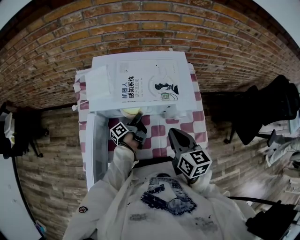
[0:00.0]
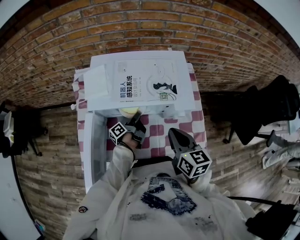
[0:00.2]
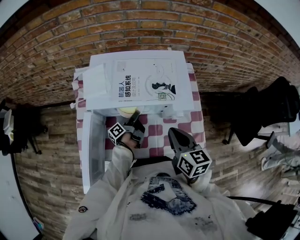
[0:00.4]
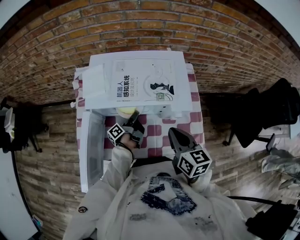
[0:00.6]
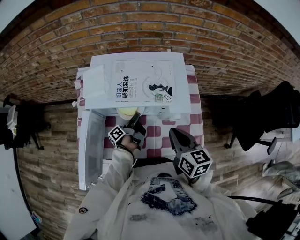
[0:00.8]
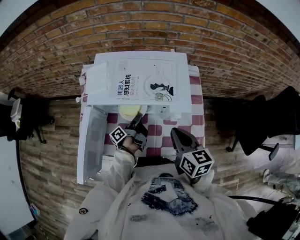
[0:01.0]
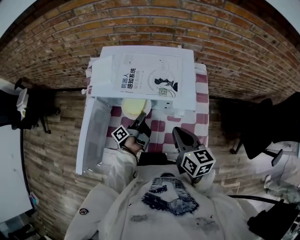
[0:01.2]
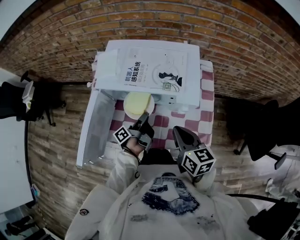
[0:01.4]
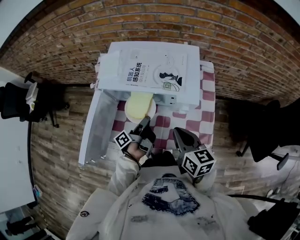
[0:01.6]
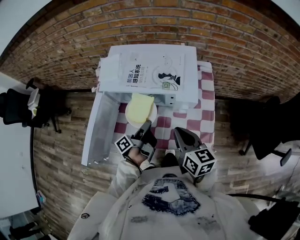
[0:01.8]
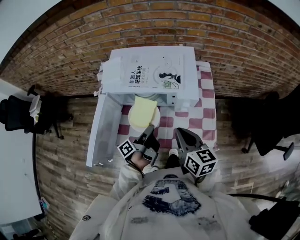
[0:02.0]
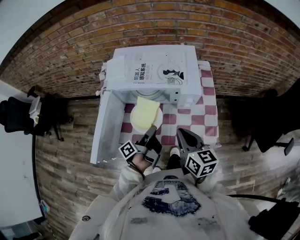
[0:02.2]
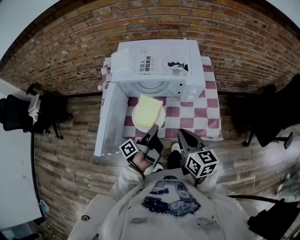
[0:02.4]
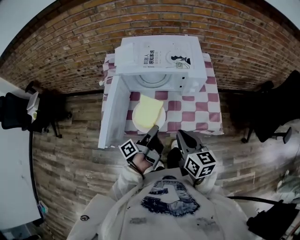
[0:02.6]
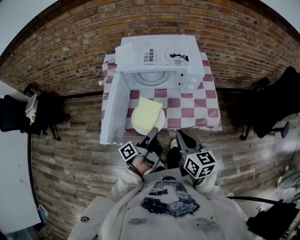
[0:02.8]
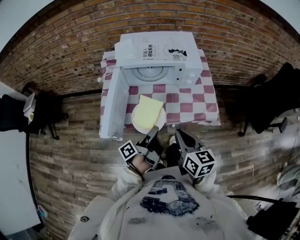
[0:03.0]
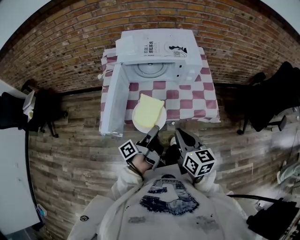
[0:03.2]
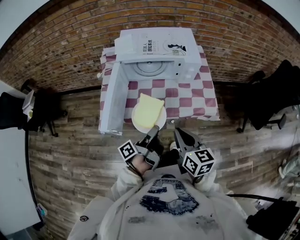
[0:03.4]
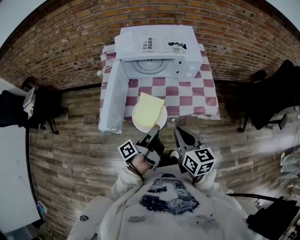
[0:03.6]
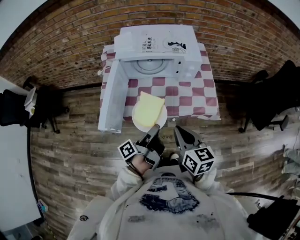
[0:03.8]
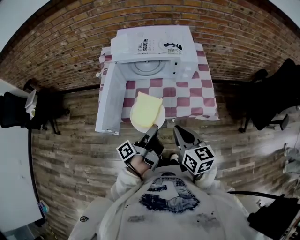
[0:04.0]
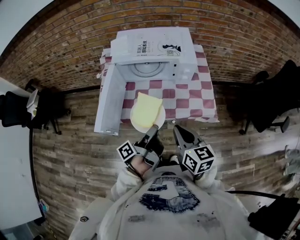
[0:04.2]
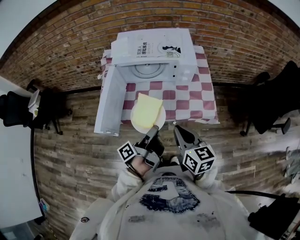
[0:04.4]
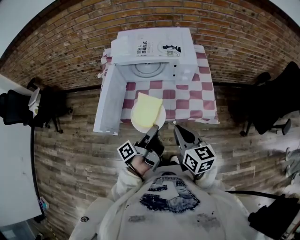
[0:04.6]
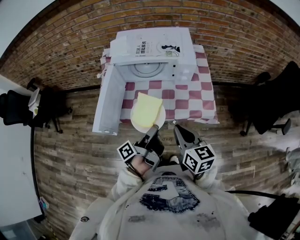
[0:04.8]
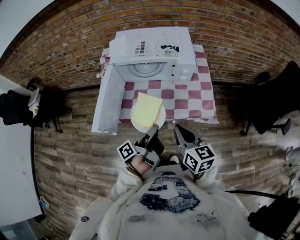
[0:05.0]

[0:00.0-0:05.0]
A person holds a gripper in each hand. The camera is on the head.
0:00.0 to 0:01.6: The left gripper goes roughly 15 cm backward and upward. Meanwhile the right gripper shifts by some 5 cm.
0:01.6 to 0:03.4: The right gripper moves backward and to the left, approximately 25 cm. The left gripper is displaced backward by roughly 25 cm.
0:03.4 to 0:05.0: Both grippers move to the right, some 5 cm.

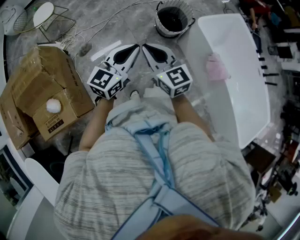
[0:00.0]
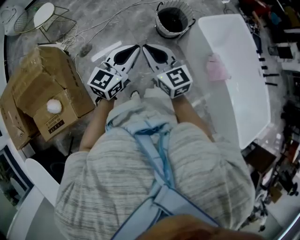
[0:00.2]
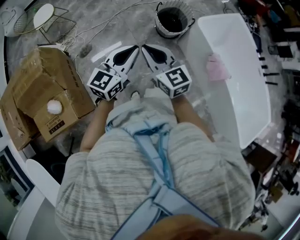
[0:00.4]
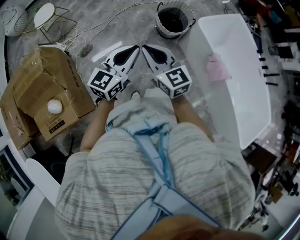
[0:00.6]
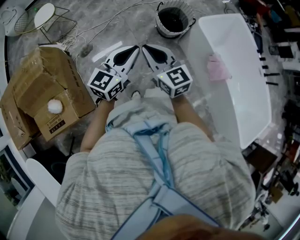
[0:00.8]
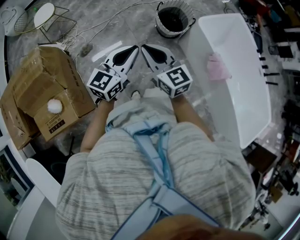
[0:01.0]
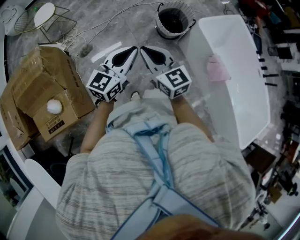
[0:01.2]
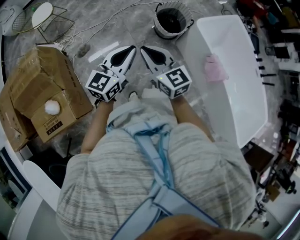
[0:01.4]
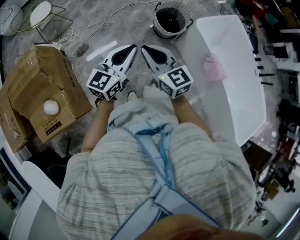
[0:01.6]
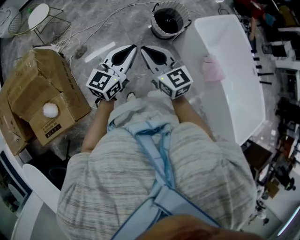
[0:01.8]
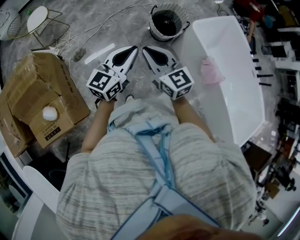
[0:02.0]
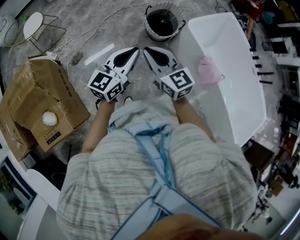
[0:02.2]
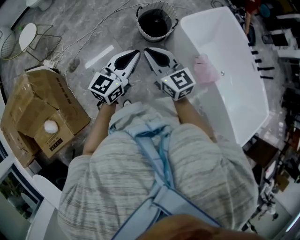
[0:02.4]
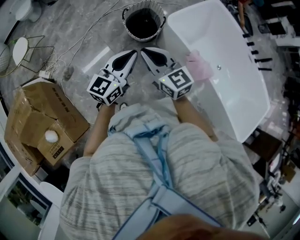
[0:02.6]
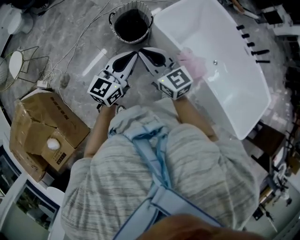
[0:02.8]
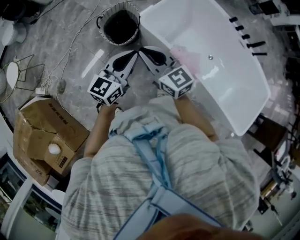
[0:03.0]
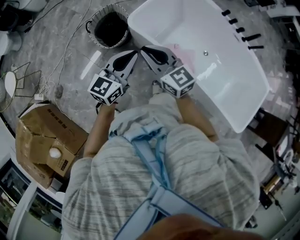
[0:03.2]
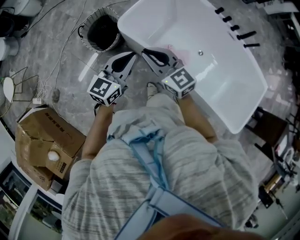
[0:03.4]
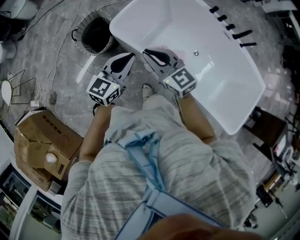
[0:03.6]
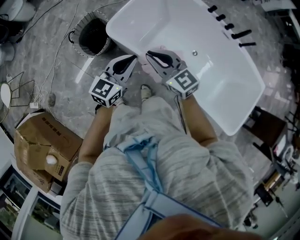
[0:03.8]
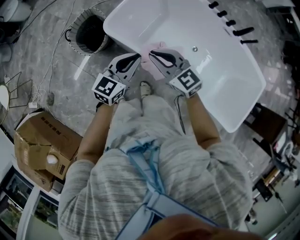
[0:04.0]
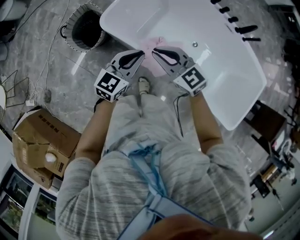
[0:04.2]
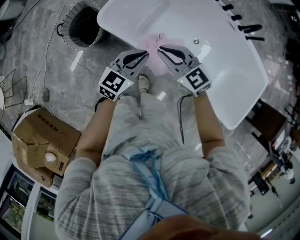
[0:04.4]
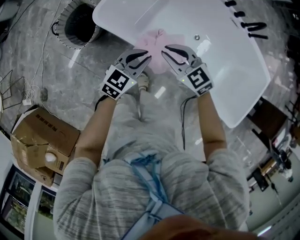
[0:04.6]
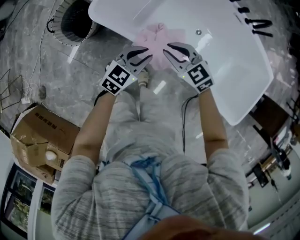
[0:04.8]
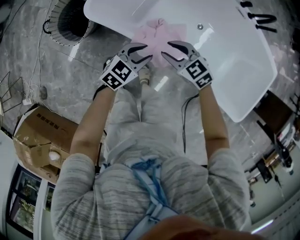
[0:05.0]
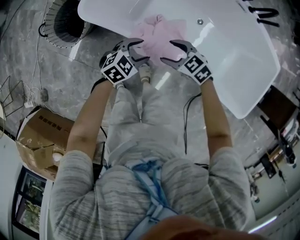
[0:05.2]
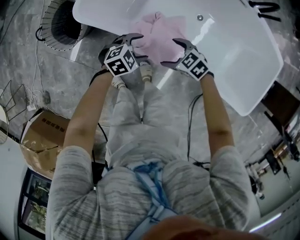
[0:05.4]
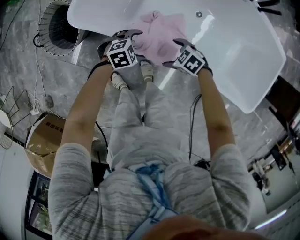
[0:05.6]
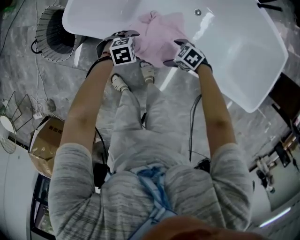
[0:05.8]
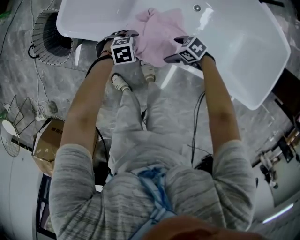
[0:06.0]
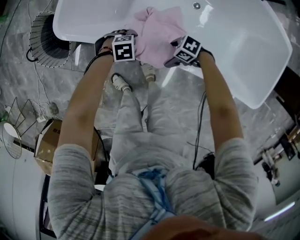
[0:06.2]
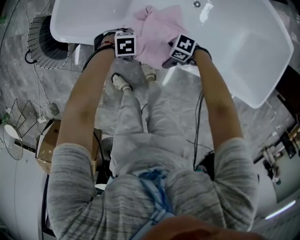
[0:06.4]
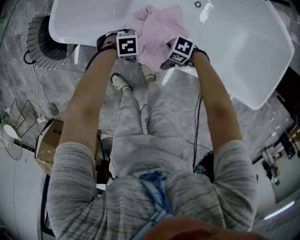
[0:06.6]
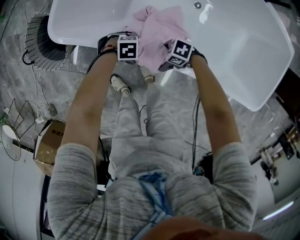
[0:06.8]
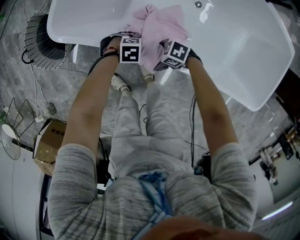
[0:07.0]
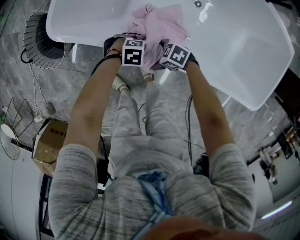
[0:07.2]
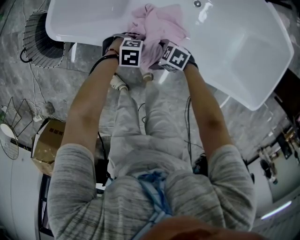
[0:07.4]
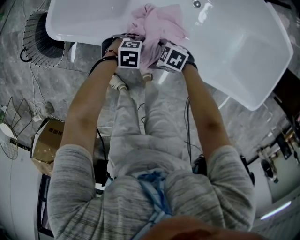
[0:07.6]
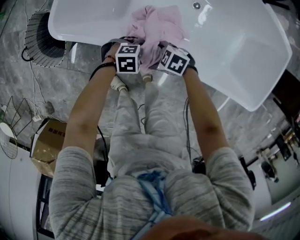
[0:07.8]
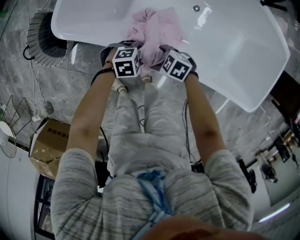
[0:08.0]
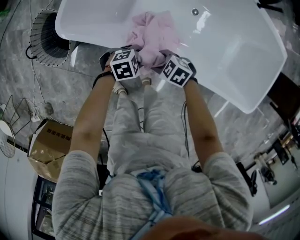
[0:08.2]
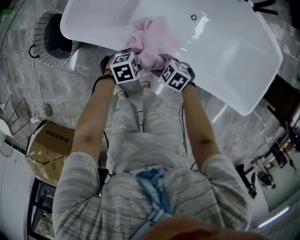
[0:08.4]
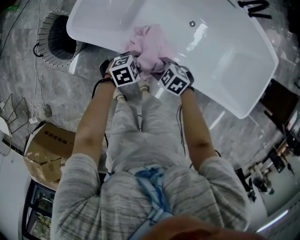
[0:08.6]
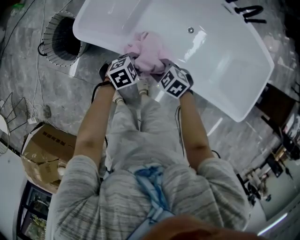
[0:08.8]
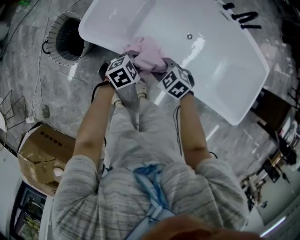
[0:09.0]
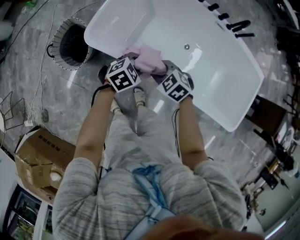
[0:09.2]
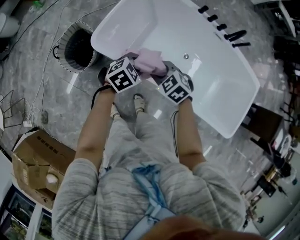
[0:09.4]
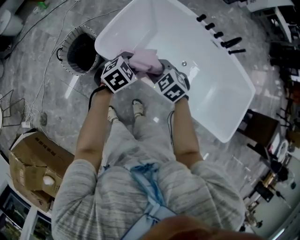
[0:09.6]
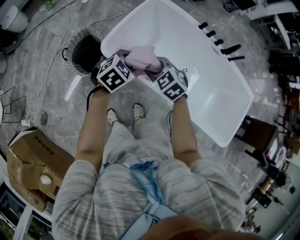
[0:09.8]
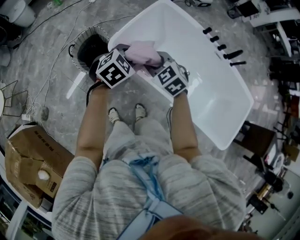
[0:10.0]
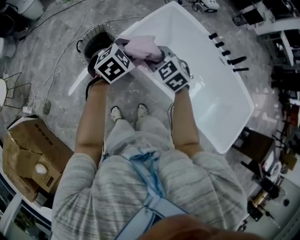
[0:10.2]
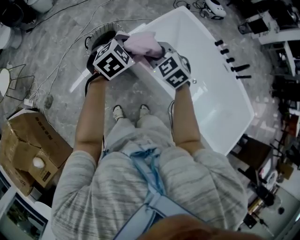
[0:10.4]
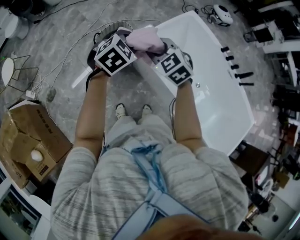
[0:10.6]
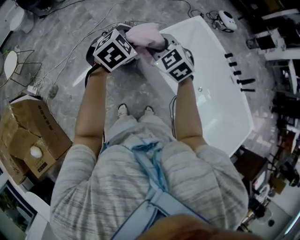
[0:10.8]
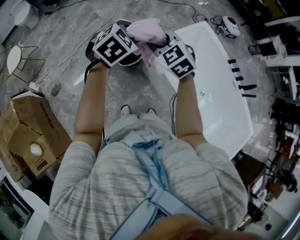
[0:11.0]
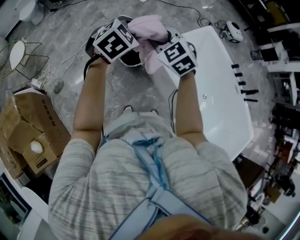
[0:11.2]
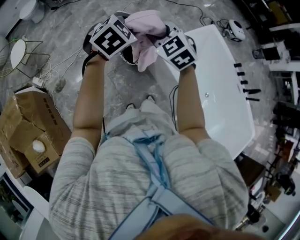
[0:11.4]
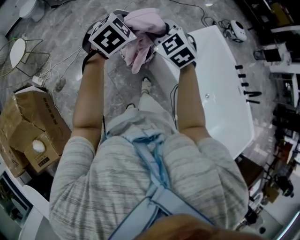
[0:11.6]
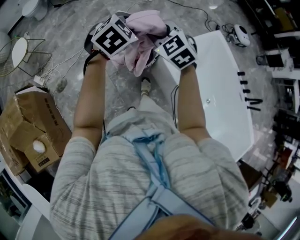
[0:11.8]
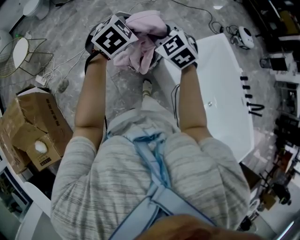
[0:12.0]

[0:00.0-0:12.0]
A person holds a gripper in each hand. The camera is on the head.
0:00.0 to 0:01.6: The grippers stay close to where they were, moving slightly.
0:01.6 to 0:03.0: The pair of grippers is taken to the right and forward, about 40 cm. The left gripper swivels some 20 degrees.
0:03.0 to 0:04.4: The right gripper travels to the right by some 30 cm, while the left gripper travels to the right and downward by about 30 cm, and turns by approximately 20 degrees.
0:04.4 to 0:06.0: The two grippers go about 35 cm downward. The right gripper changes its angle by about 60 degrees, and opens; the left gripper angles its fingers downward, by approximately 40 degrees, and opens up.
0:06.0 to 0:07.6: The right gripper is displaced to the right by approximately 5 cm; the left gripper ends up roughly 5 cm from where it was.
0:07.6 to 0:09.0: The two grippers go roughly 20 cm upward. The left gripper rotates about 40 degrees, and closes. Meanwhile the right gripper turns by some 30 degrees, and closes its fingers.
0:09.0 to 0:10.4: The two grippers go approximately 30 cm upward. The left gripper changes its angle by roughly 40 degrees. Meanwhile the right gripper turns by about 30 degrees.
0:10.4 to 0:12.0: The grippers both shift to the left and forward by approximately 30 cm.

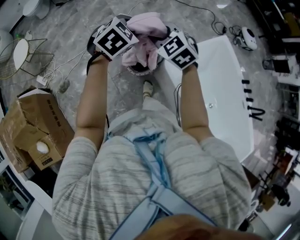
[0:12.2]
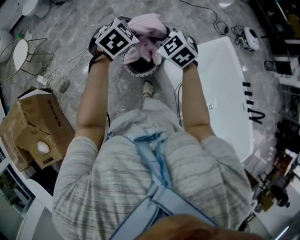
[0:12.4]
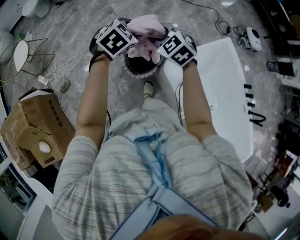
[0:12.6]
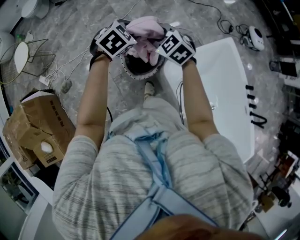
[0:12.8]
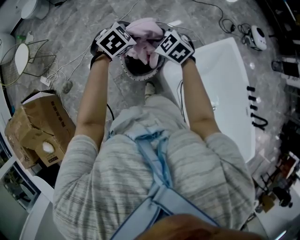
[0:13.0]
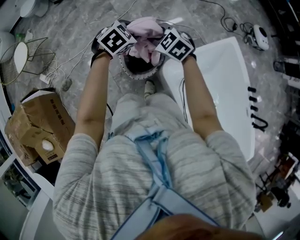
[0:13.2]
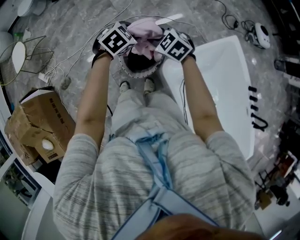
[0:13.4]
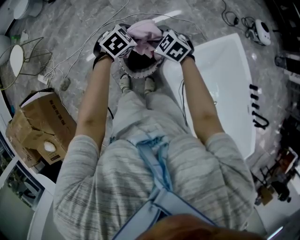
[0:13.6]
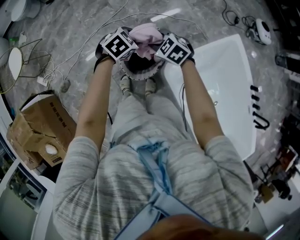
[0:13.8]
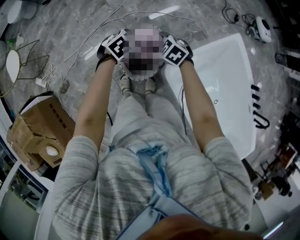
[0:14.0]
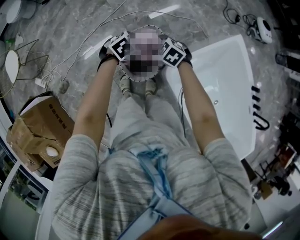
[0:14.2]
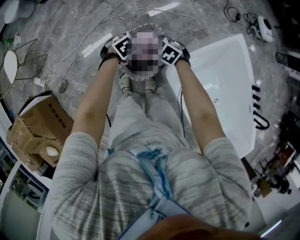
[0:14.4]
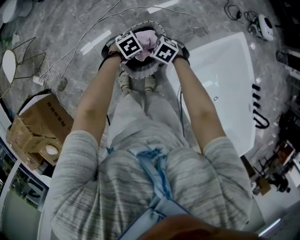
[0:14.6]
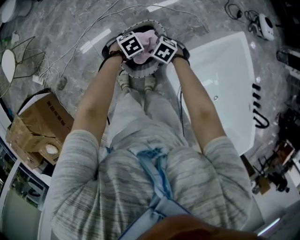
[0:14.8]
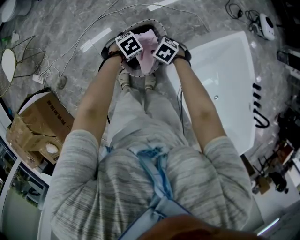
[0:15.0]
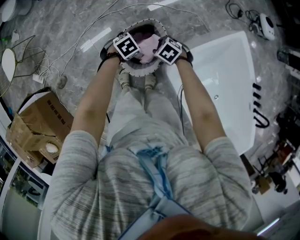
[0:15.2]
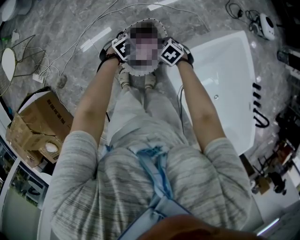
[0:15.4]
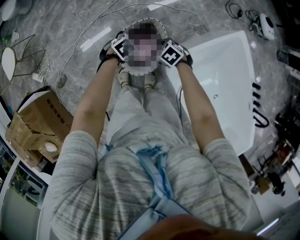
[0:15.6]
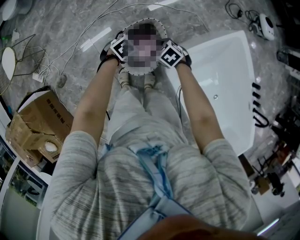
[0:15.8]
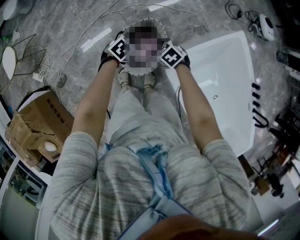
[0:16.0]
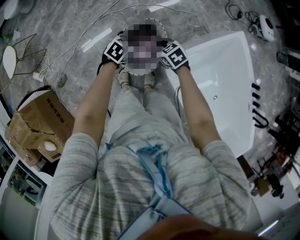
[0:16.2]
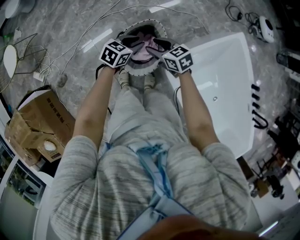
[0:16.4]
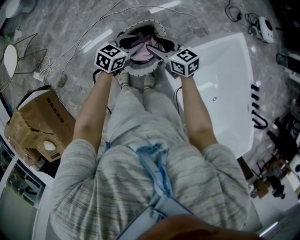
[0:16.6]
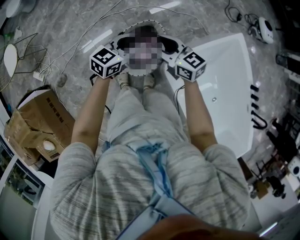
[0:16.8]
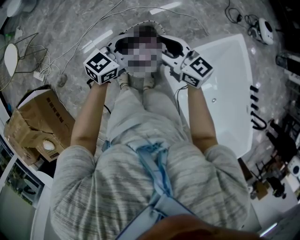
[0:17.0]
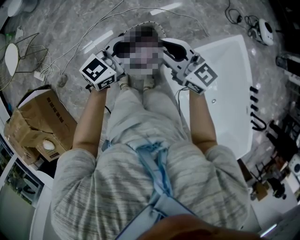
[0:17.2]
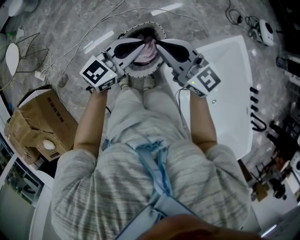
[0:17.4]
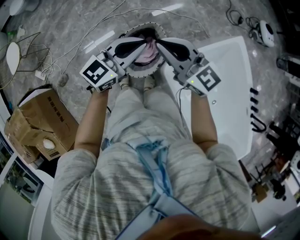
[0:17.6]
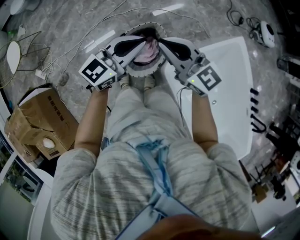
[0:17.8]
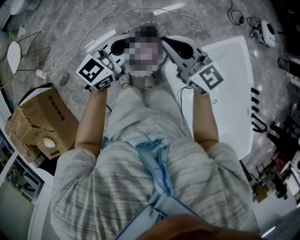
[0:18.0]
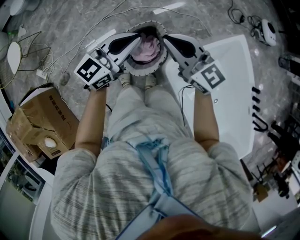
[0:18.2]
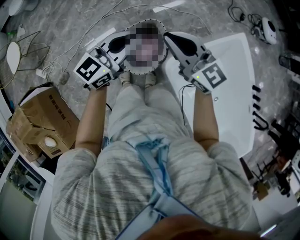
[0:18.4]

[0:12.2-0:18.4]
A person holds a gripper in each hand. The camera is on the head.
0:12.2 to 0:13.8: The grippers both shift downward and forward by about 25 cm. The right gripper turns by approximately 20 degrees.
0:13.8 to 0:15.4: The grippers both shift downward by approximately 15 cm. The right gripper rotates roughly 30 degrees.
0:15.4 to 0:16.8: Both grippers move upward, roughly 20 cm. The left gripper points its fingers approximately 50 degrees further upward. The right gripper angles its fingers upward, by approximately 50 degrees.
0:16.8 to 0:18.4: Both grippers travel together upward, approximately 15 cm. The right gripper closes up.
